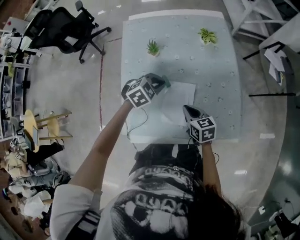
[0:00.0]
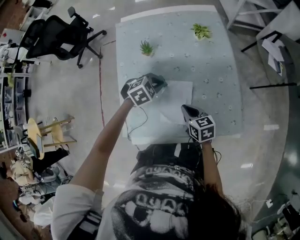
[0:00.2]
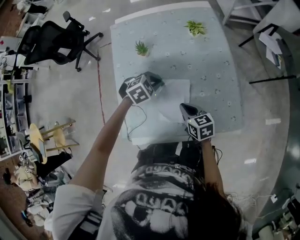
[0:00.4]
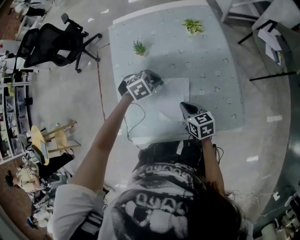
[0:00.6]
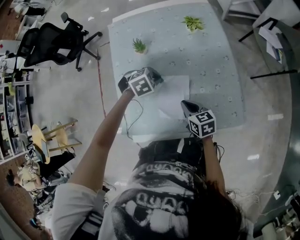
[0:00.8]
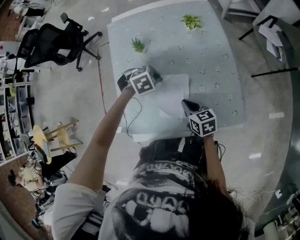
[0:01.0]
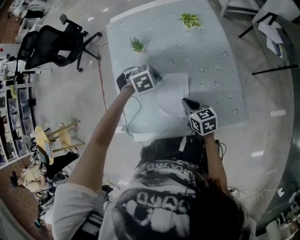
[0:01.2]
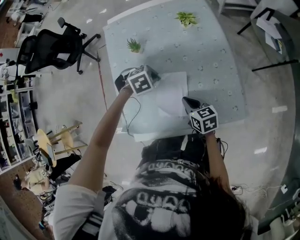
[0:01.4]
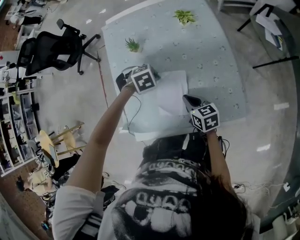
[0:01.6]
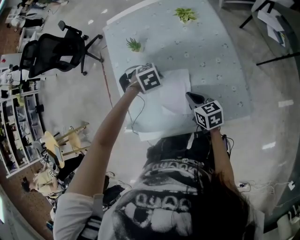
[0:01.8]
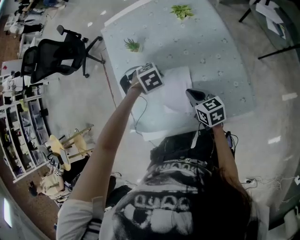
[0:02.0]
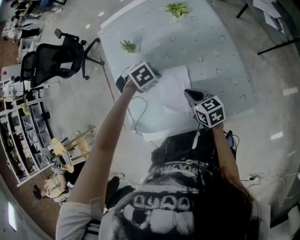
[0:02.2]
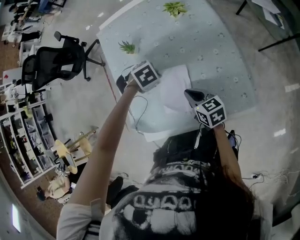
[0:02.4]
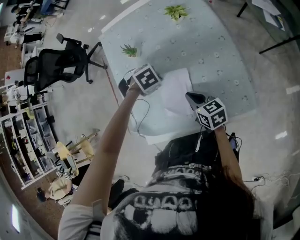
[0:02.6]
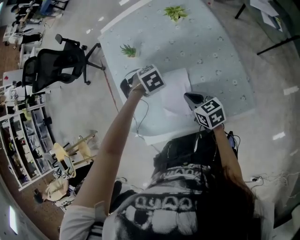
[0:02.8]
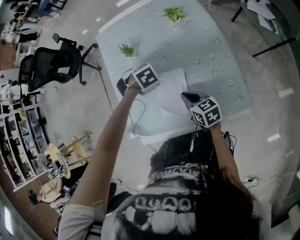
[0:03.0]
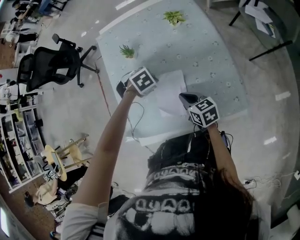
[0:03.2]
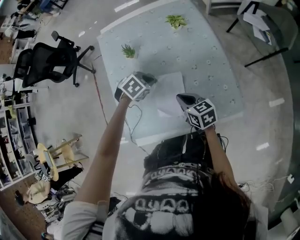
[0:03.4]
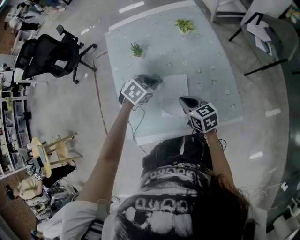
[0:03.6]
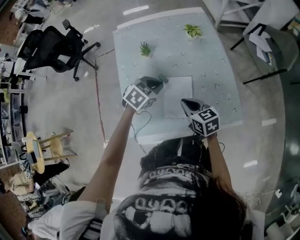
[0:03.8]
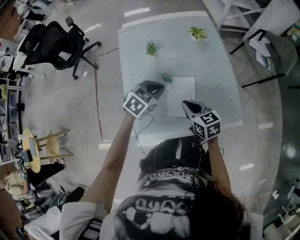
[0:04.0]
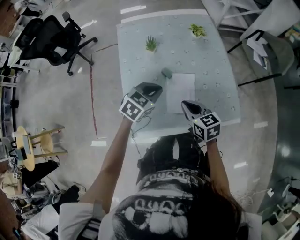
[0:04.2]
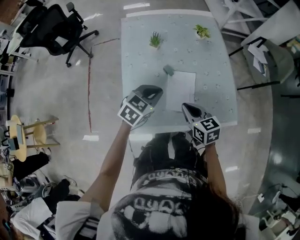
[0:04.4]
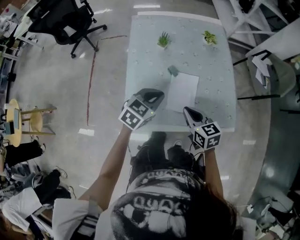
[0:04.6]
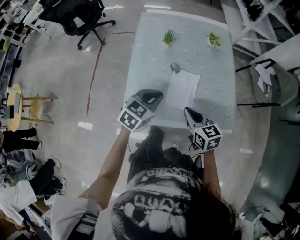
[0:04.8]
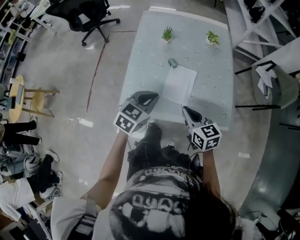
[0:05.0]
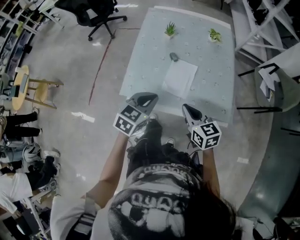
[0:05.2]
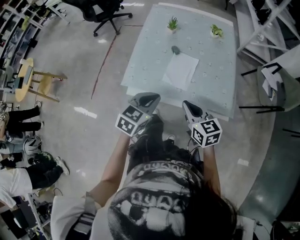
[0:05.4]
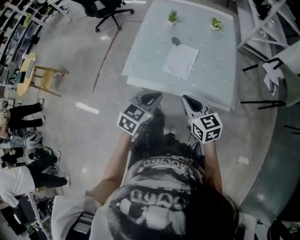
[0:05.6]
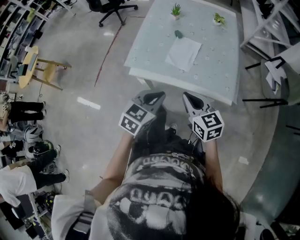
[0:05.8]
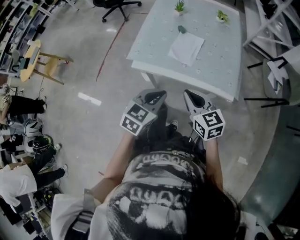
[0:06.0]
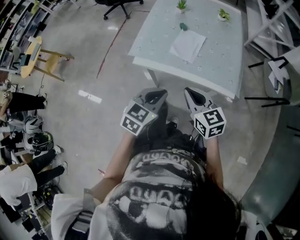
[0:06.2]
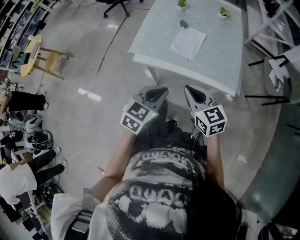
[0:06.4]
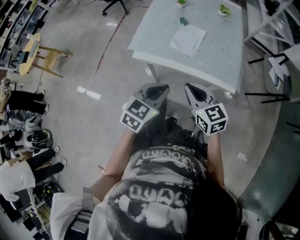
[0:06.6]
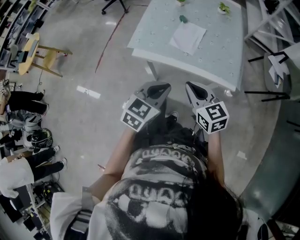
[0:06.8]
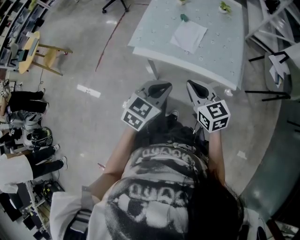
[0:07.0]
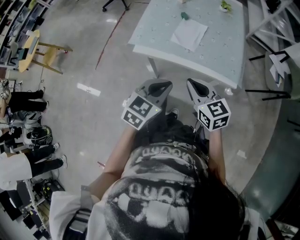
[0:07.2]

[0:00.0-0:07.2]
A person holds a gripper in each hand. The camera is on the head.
0.0 to 1.4 s: The left gripper turns by some 30 degrees.
1.4 to 2.8 s: There are only small adjustments of the grippers.
2.8 to 4.4 s: The left gripper shifts approximately 15 cm upward, and points its fingers about 50 degrees further upward, while the right gripper changes place by roughly 10 cm.
4.4 to 5.8 s: Both grippers move backward, roughly 25 cm. The right gripper rotates approximately 20 degrees; the left gripper turns by approximately 30 degrees.
5.8 to 7.2 s: The left gripper shifts about 5 cm backward.

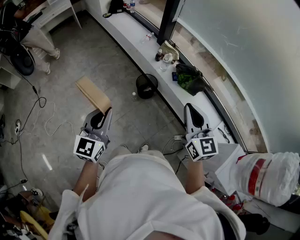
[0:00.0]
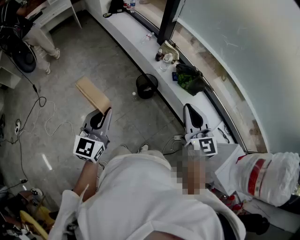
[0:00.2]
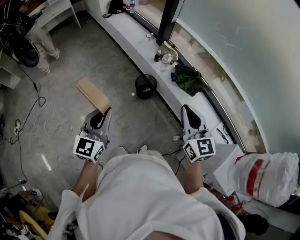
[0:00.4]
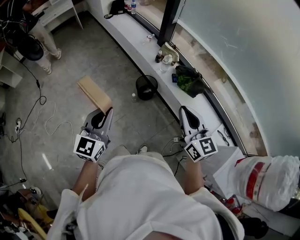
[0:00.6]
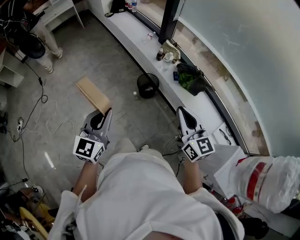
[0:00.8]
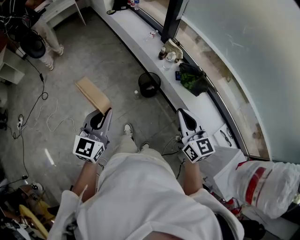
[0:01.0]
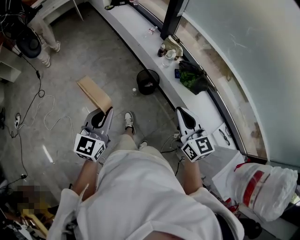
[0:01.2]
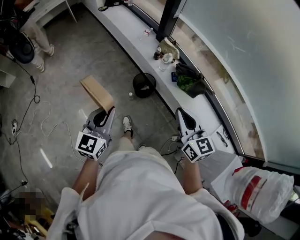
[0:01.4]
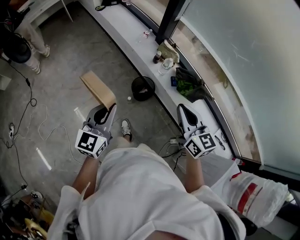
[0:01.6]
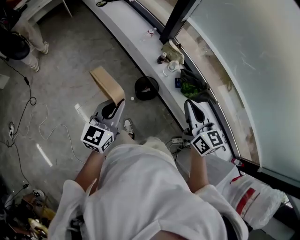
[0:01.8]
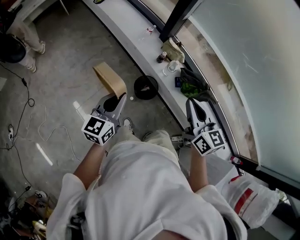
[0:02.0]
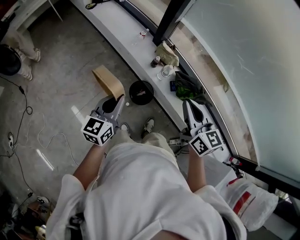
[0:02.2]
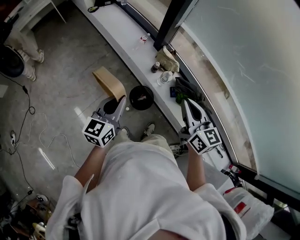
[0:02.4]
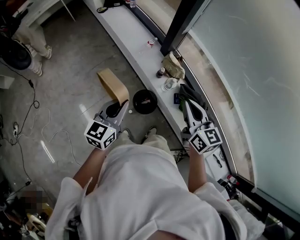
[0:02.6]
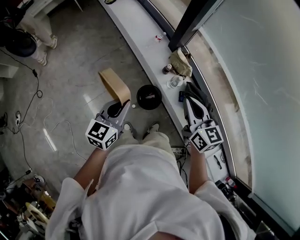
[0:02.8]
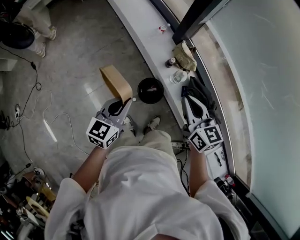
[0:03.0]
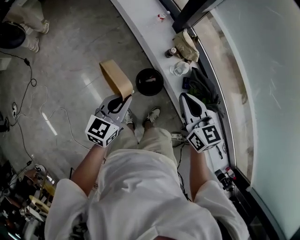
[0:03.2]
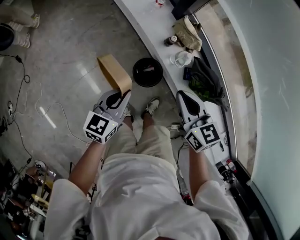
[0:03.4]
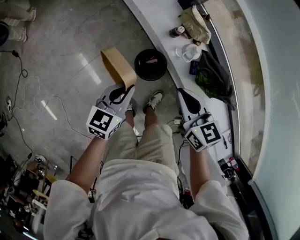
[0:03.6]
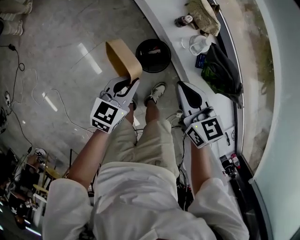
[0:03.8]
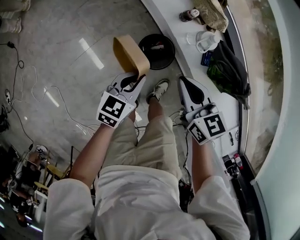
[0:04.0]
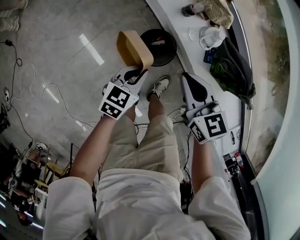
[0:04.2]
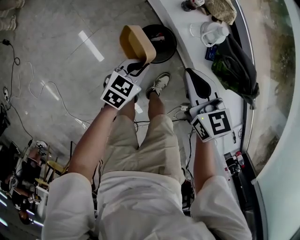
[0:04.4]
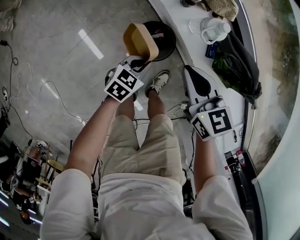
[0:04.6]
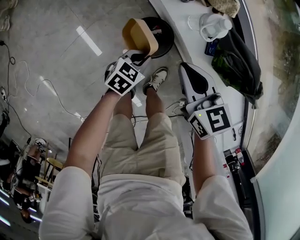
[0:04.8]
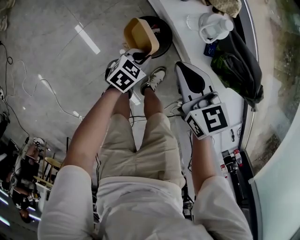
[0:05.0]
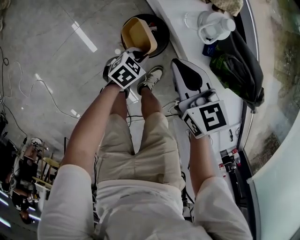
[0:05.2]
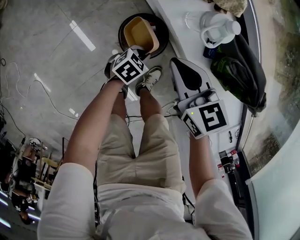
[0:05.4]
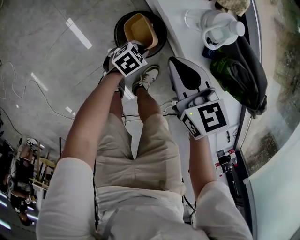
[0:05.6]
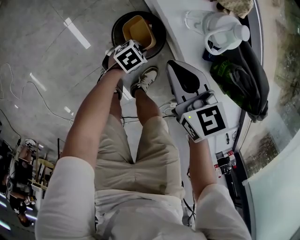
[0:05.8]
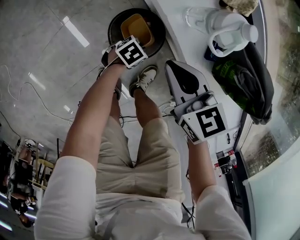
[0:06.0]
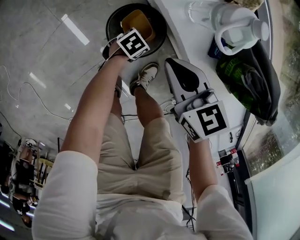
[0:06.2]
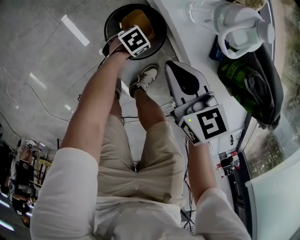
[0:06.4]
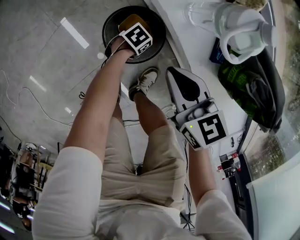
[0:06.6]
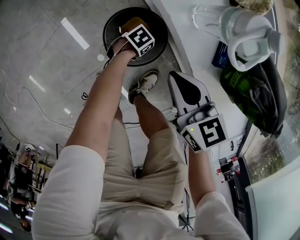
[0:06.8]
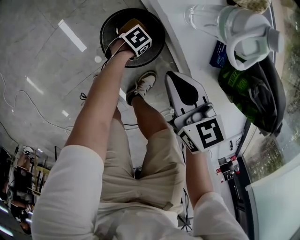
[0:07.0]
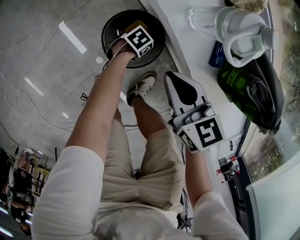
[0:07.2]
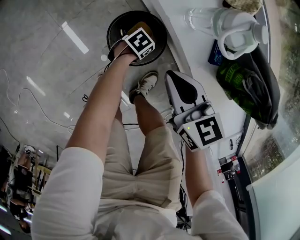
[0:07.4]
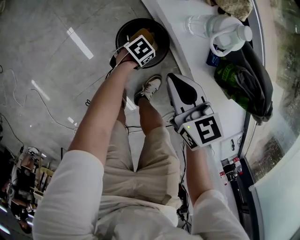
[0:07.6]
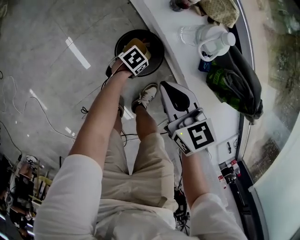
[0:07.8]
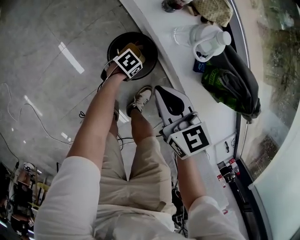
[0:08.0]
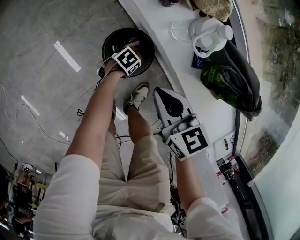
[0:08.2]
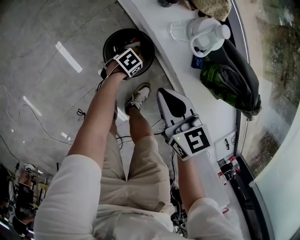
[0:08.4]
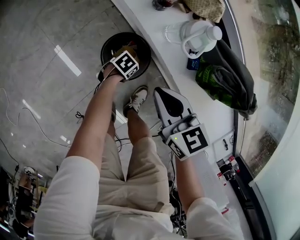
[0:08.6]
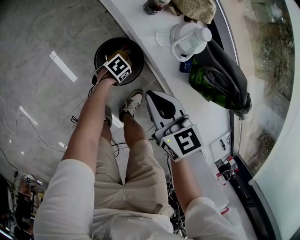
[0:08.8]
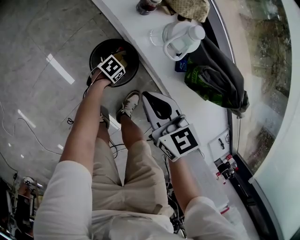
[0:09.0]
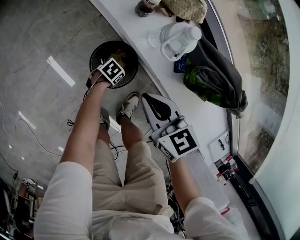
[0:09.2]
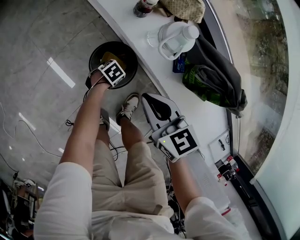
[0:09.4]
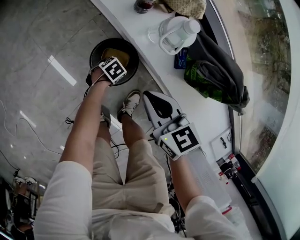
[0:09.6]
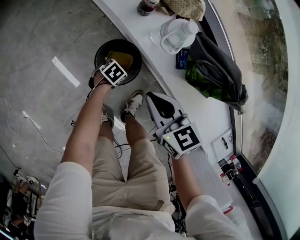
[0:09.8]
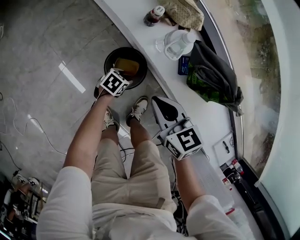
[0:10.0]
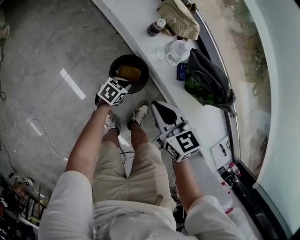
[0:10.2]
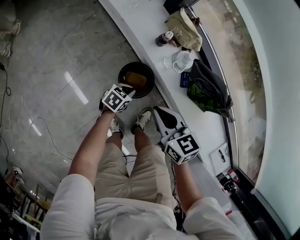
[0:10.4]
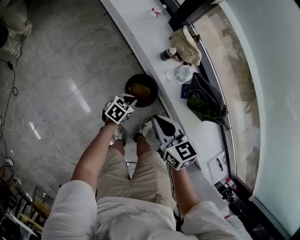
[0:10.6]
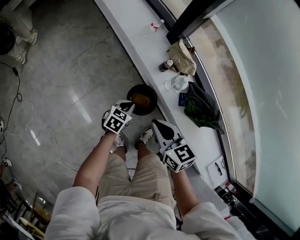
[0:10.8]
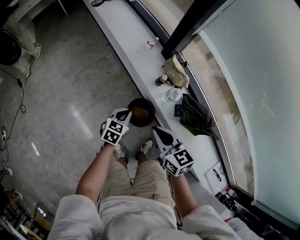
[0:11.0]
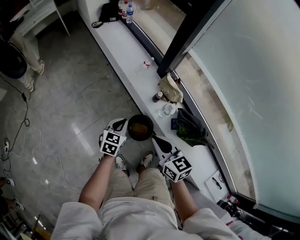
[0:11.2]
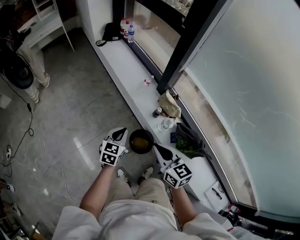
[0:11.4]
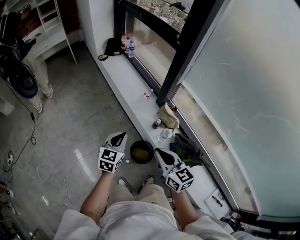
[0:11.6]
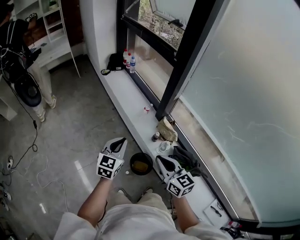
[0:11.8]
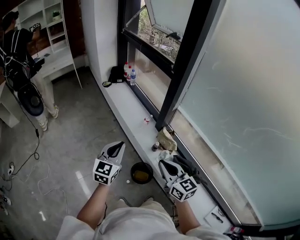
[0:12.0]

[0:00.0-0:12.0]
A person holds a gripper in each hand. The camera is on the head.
0.0 to 1.6 s: Both grippers travel together forward, approximately 15 cm.
1.6 to 3.0 s: Both grippers travel together forward, about 25 cm.
3.0 to 4.4 s: Both grippers move downward, about 35 cm. The left gripper rotates approximately 30 degrees.
4.4 to 6.0 s: The left gripper goes about 30 cm downward, and swivels approximately 30 degrees, while the right gripper is displaced downward by about 15 cm.
6.0 to 7.6 s: The left gripper travels downward and back again, approximately 10 cm each way.
7.6 to 9.0 s: The left gripper opens its fingers.
9.0 to 10.4 s: The left gripper moves upward, roughly 20 cm, turns by about 30 degrees, and closes; the right gripper heads upward, covering approximately 10 cm.
10.4 to 12.0 s: The right gripper is displaced upward by some 35 cm, and turns by roughly 30 degrees, while the left gripper moves upward, roughly 60 cm, and points its fingers roughly 40 degrees further upward.

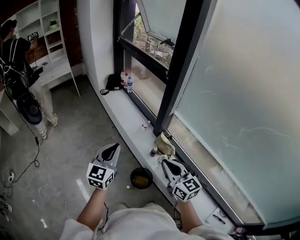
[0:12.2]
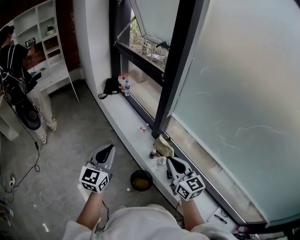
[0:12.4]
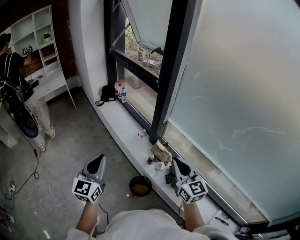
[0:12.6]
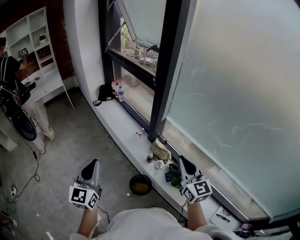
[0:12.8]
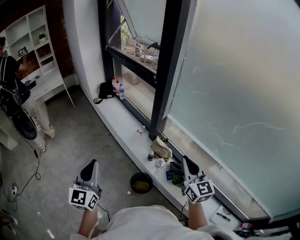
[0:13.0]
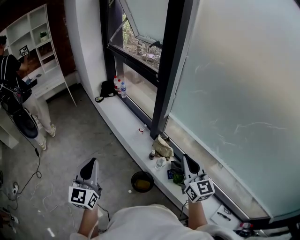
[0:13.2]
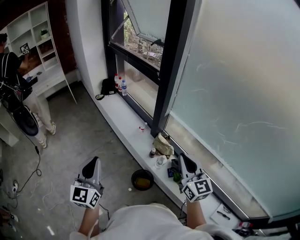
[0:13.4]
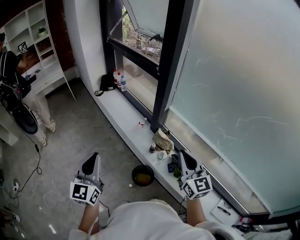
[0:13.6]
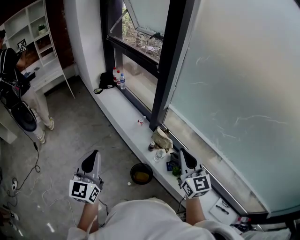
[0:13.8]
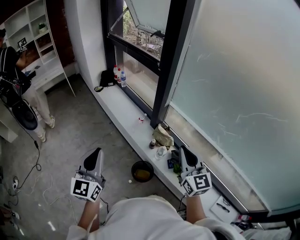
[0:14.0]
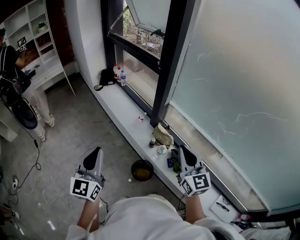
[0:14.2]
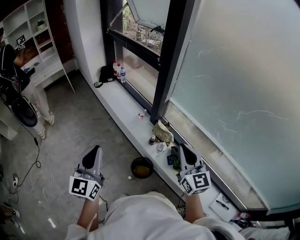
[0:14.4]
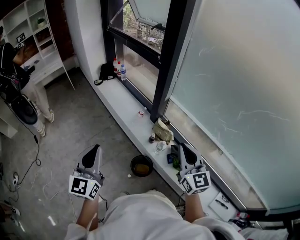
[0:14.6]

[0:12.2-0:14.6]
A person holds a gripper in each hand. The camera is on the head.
12.2 to 13.4 s: The left gripper goes approximately 10 cm to the left, backward and upward, while the right gripper travels to the right and upward by approximately 10 cm.
13.4 to 14.6 s: The grippers make only small movements.

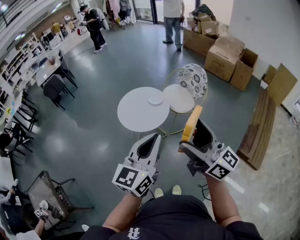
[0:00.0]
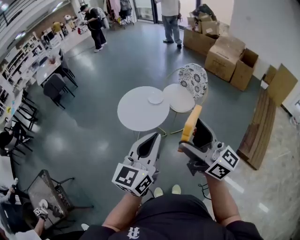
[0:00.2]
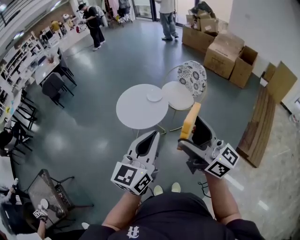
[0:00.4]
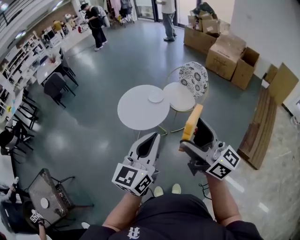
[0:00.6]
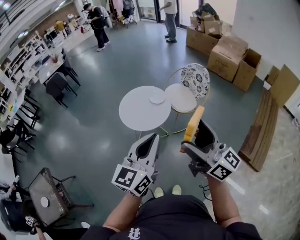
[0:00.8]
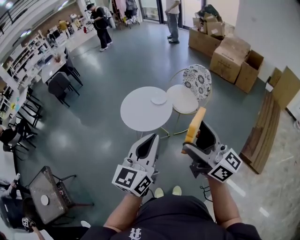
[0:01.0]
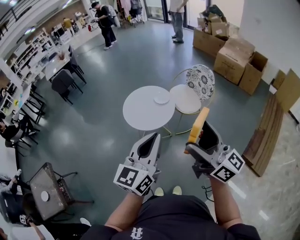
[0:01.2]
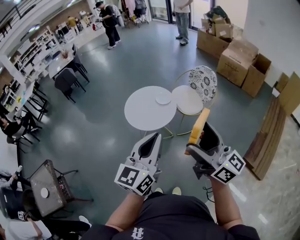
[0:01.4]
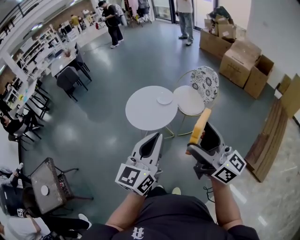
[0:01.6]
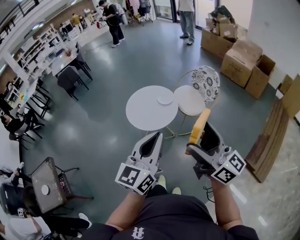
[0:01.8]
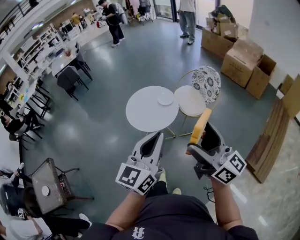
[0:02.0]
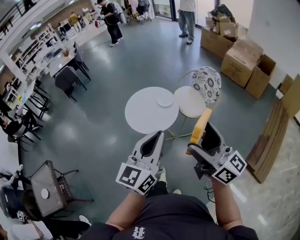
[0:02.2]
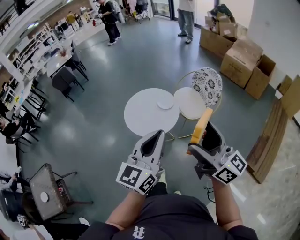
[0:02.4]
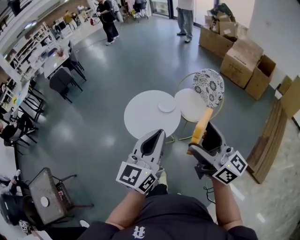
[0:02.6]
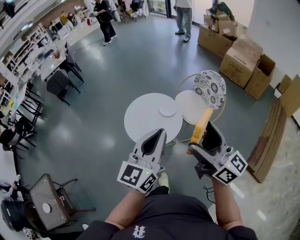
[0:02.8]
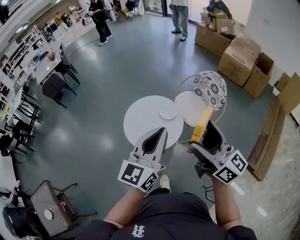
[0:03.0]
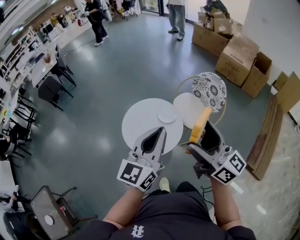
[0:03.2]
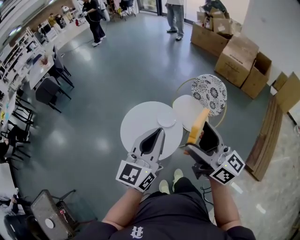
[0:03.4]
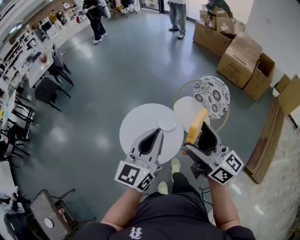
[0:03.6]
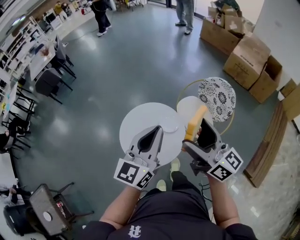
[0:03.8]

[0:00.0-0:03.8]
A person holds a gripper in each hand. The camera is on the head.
0.0 to 1.2 s: There are only small adjustments of the grippers.
1.2 to 2.6 s: The grippers both shift forward by approximately 15 cm.
2.6 to 3.8 s: Both grippers move forward, roughly 30 cm.
